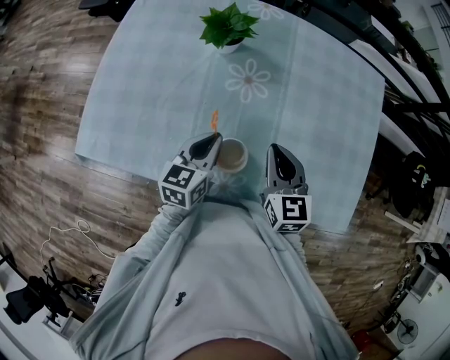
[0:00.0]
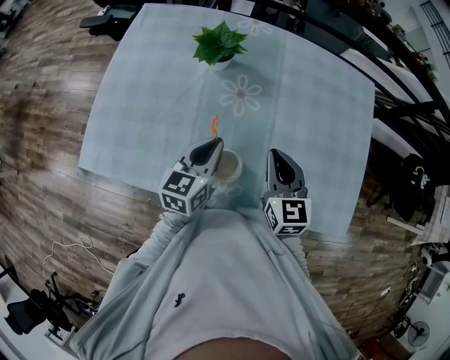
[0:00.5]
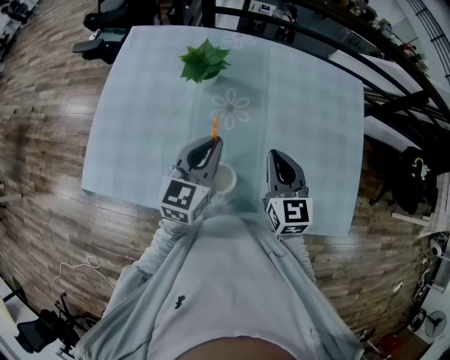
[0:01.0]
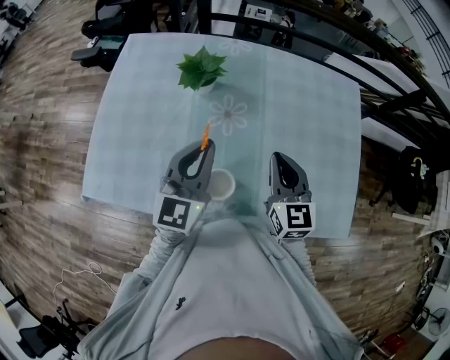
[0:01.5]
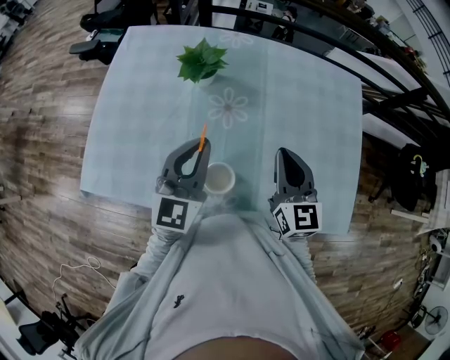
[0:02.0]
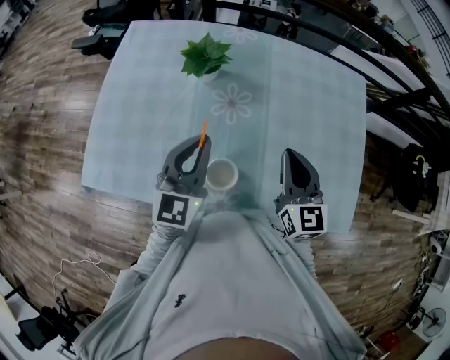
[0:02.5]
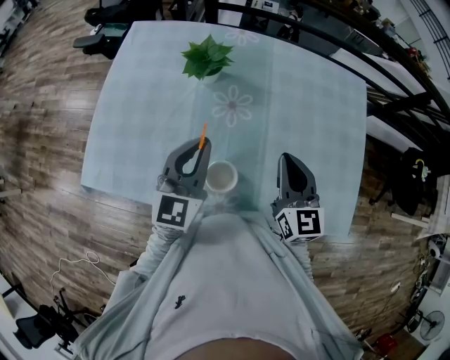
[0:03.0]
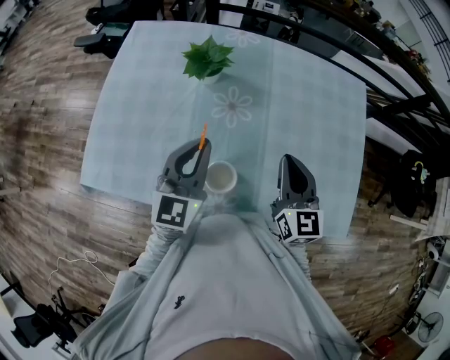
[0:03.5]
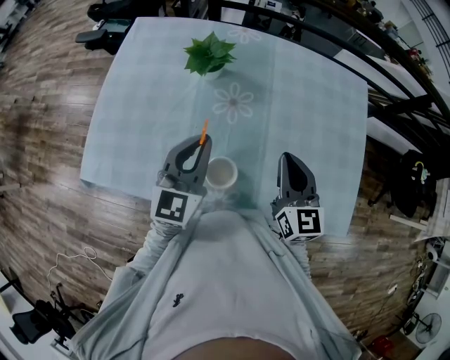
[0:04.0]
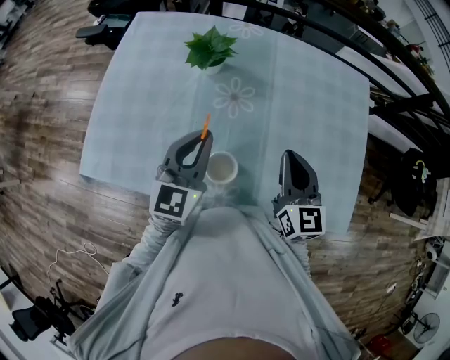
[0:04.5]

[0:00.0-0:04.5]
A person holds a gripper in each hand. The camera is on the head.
0:00.0 to 0:02.0: The left gripper is displaced upward by some 15 cm, and turns by approximately 30 degrees. Meanwhile the right gripper heads upward, covering some 10 cm.
0:02.0 to 0:04.5: There are only small adjustments of the grippers.

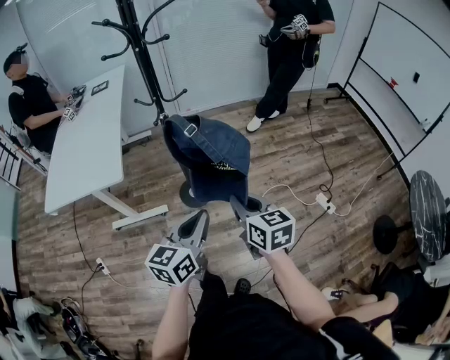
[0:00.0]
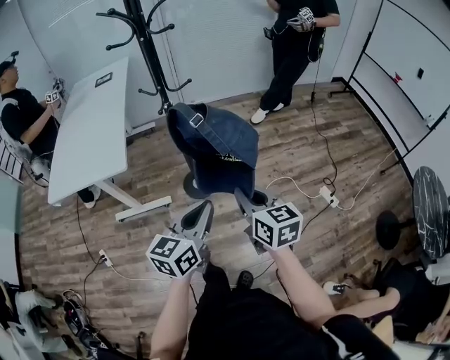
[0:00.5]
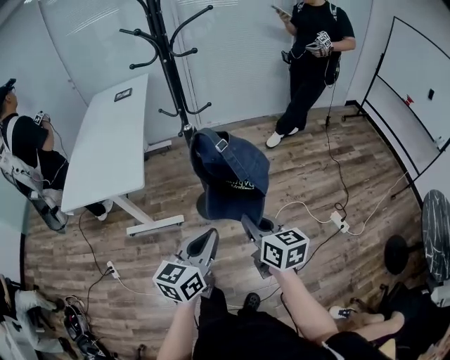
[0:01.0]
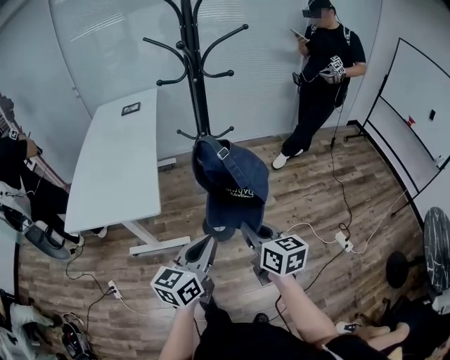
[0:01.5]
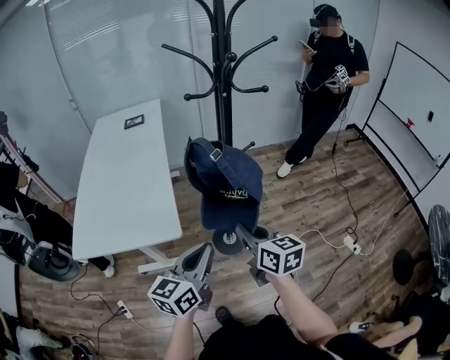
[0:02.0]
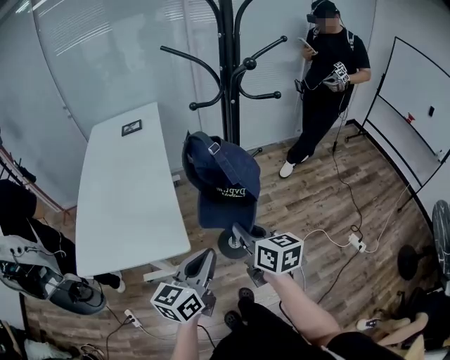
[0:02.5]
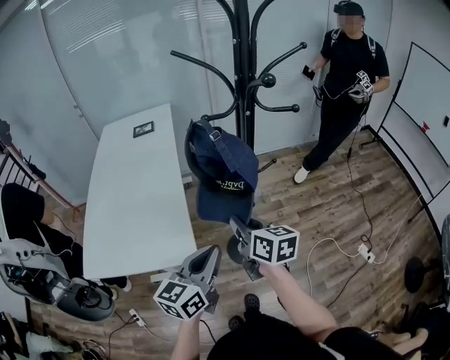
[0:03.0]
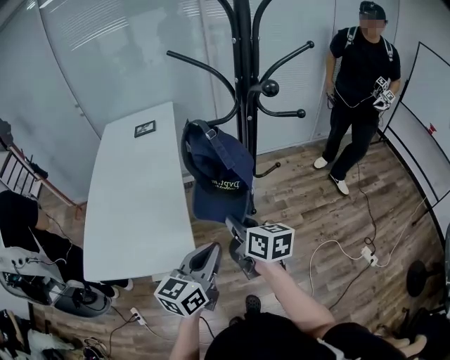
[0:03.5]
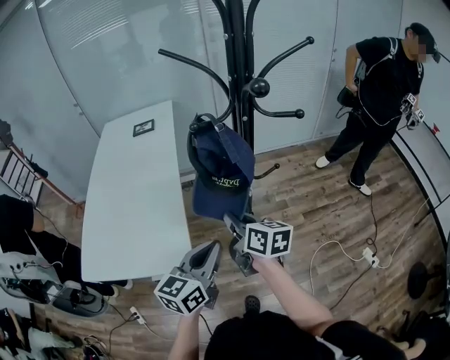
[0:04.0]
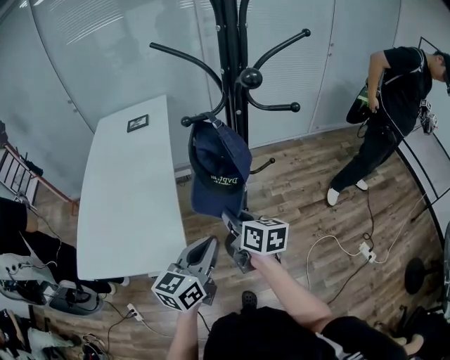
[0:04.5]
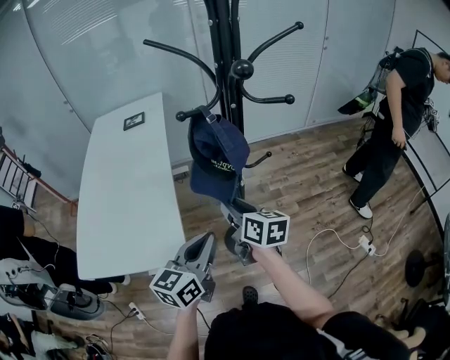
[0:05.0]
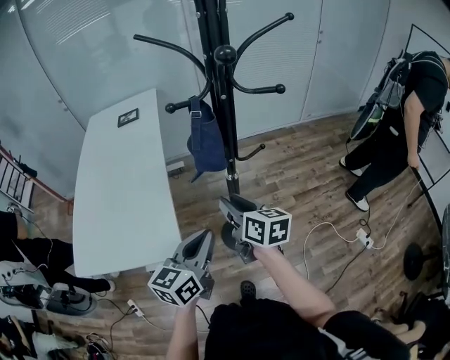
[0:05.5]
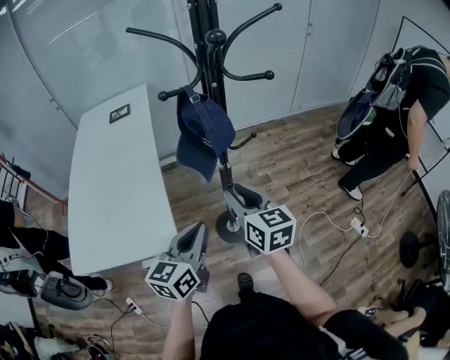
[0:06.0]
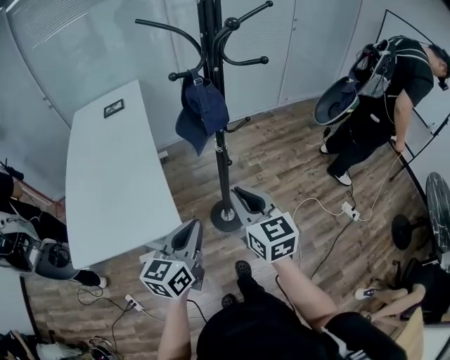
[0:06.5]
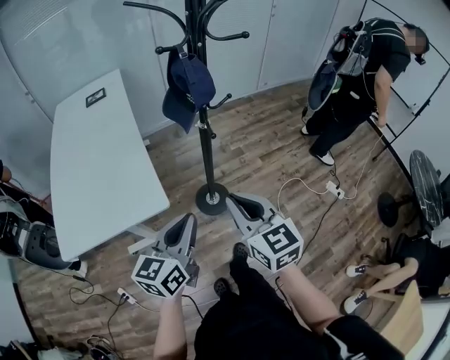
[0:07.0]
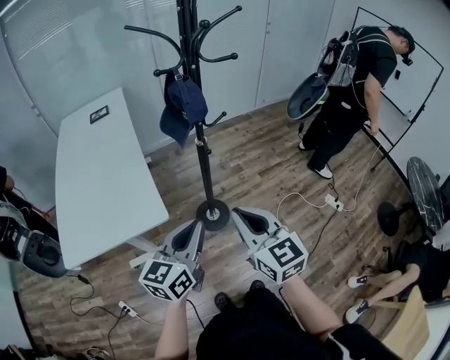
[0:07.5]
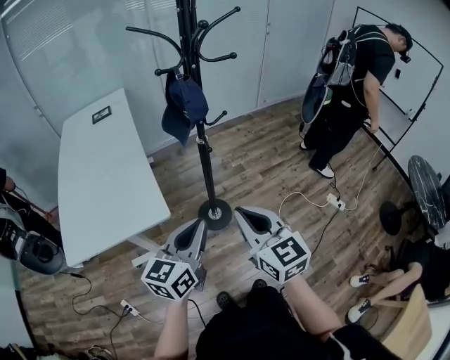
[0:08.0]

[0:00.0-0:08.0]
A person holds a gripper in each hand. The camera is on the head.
0:00.0 to 0:02.0: The two grippers go approximately 25 cm to the left and forward.
0:02.0 to 0:04.0: The two grippers go some 15 cm forward.
0:04.0 to 0:06.0: The right gripper is displaced to the right by roughly 5 cm, changes its angle by approximately 20 degrees, and opens.
0:06.0 to 0:08.0: The right gripper goes some 25 cm backward, and closes up. Meanwhile the left gripper travels backward by approximately 15 cm.

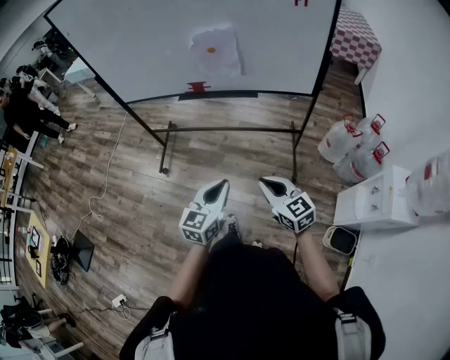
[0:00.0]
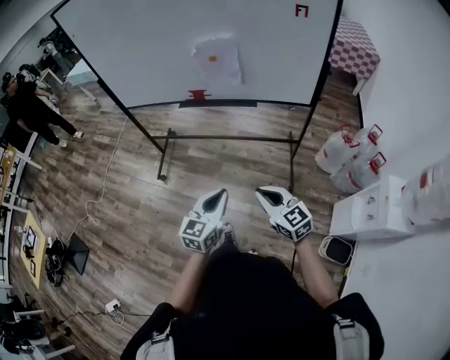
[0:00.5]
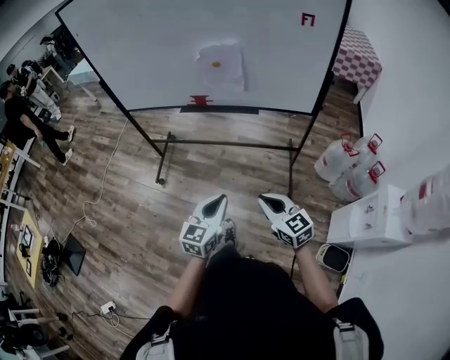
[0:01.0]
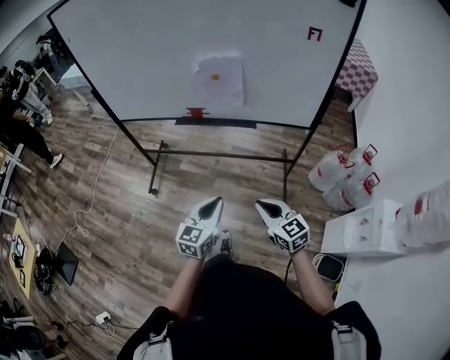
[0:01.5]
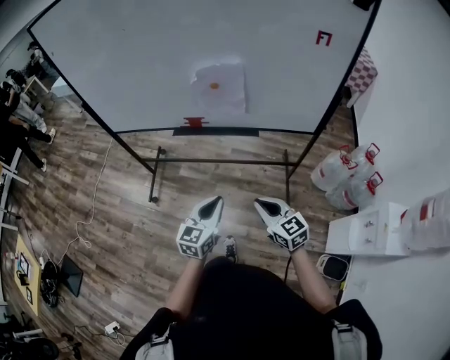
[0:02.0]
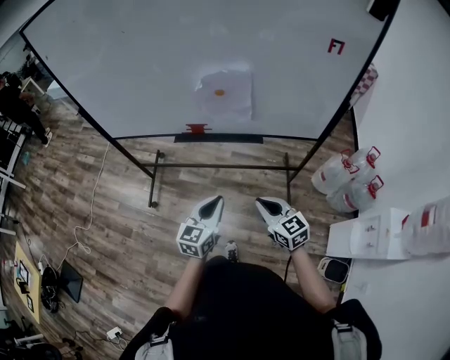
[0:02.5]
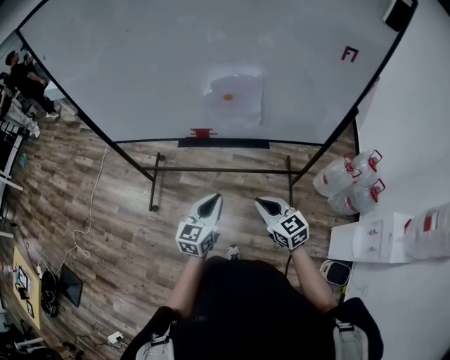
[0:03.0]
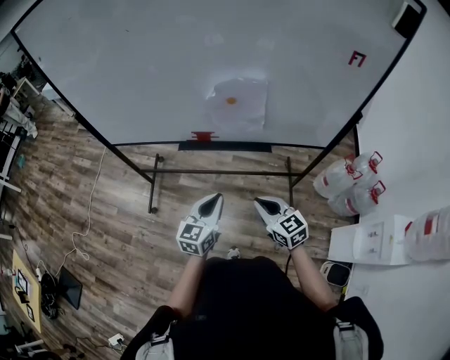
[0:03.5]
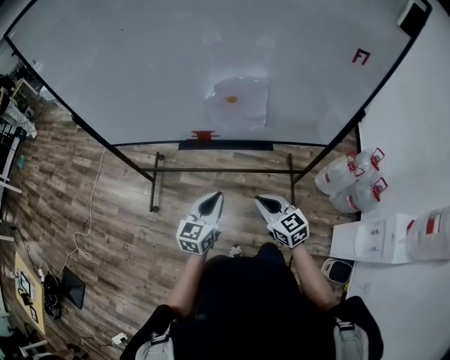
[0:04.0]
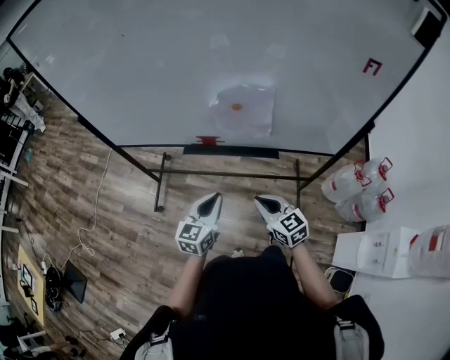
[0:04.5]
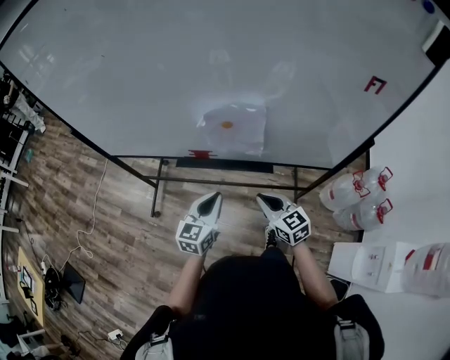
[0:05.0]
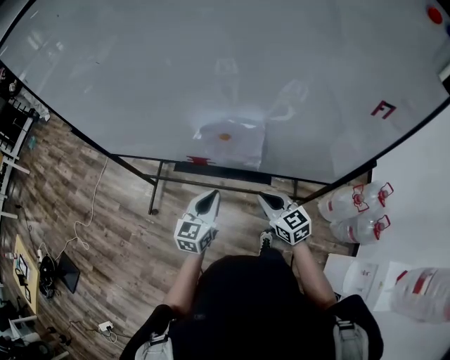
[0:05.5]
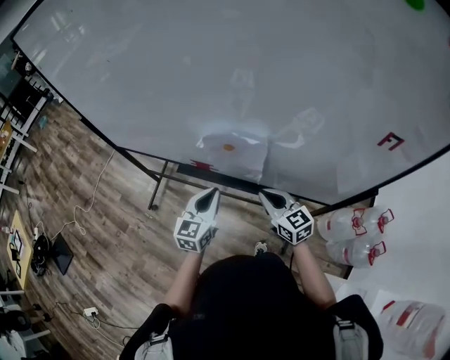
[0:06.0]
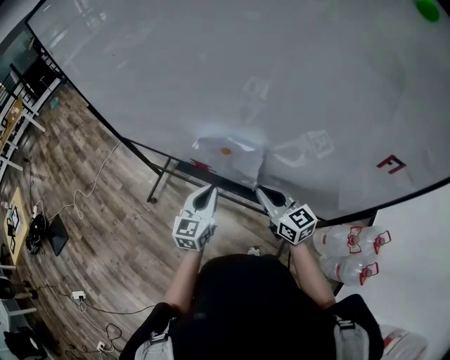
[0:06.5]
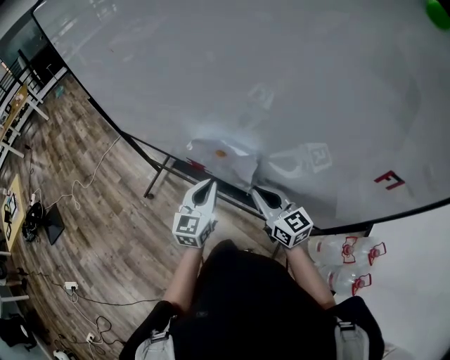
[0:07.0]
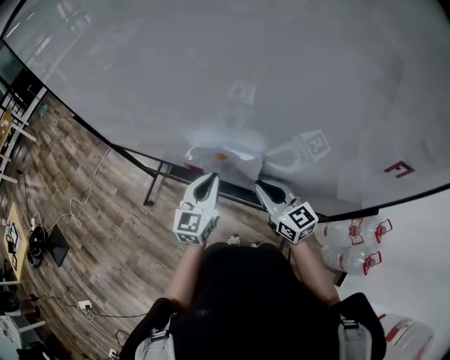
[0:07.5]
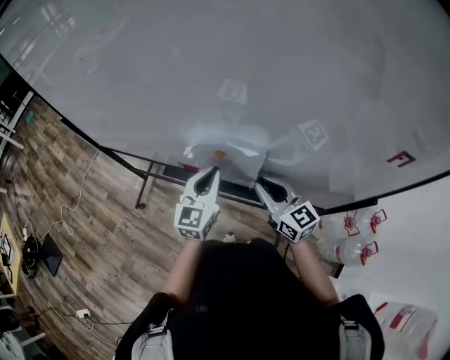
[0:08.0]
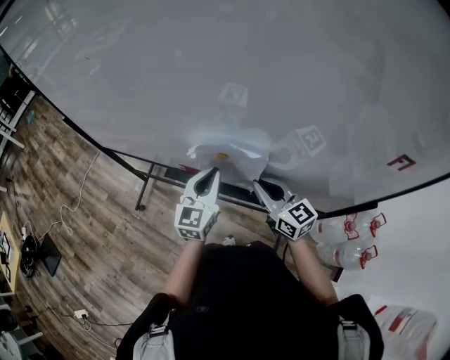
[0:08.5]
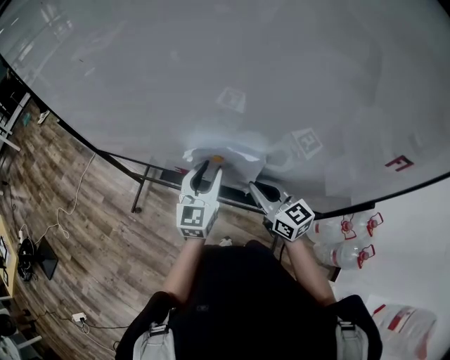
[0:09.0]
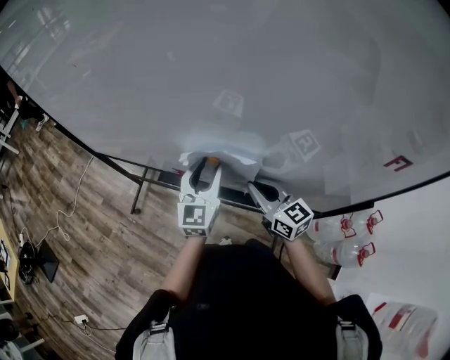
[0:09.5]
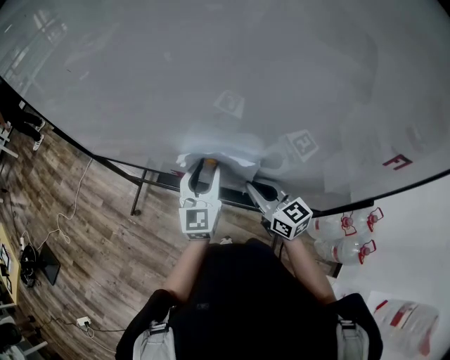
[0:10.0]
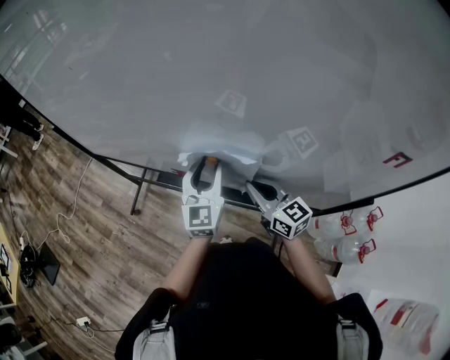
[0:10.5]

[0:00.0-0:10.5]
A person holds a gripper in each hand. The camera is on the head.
0:00.0 to 0:02.0: Both grippers move forward, approximately 15 cm.
0:02.0 to 0:04.0: Both grippers move forward and to the left, about 15 cm.
0:04.0 to 0:06.5: The two grippers go some 25 cm forward and to the right. The left gripper swivels approximately 30 degrees, while the right gripper changes its angle by roughly 20 degrees.
0:06.5 to 0:08.5: The left gripper is displaced forward by roughly 5 cm.
0:08.5 to 0:10.5: The left gripper opens its fingers.

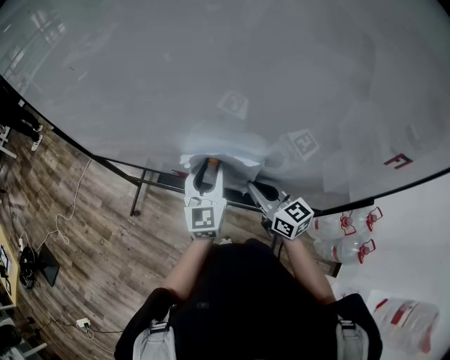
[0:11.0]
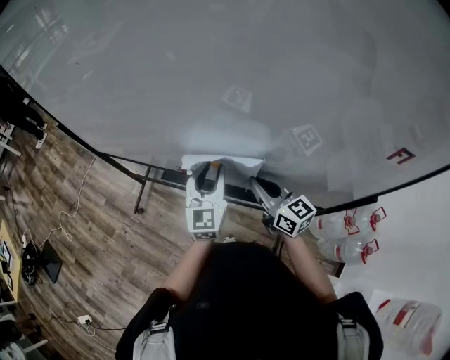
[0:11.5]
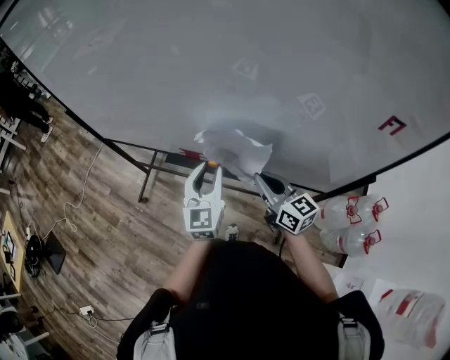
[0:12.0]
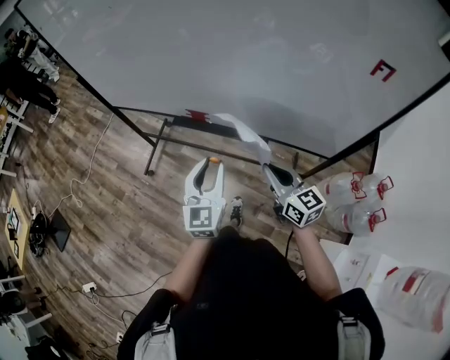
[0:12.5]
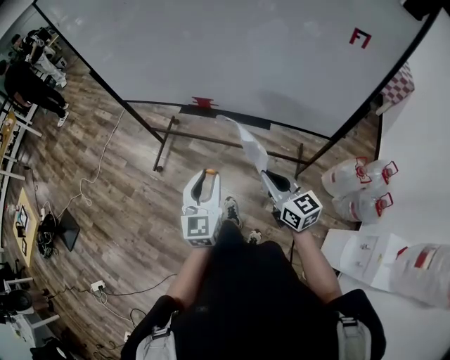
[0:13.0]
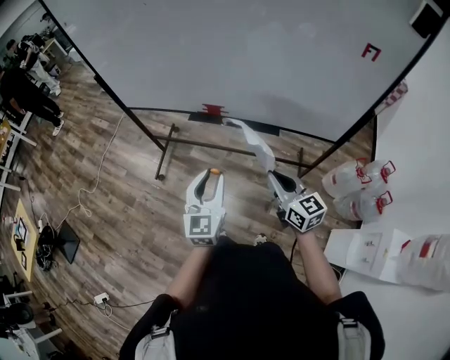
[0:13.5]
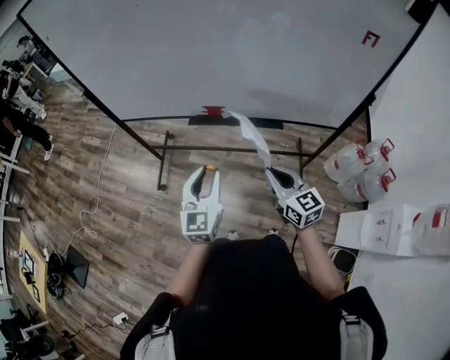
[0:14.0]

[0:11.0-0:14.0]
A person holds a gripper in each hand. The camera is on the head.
0:11.0 to 0:12.5: The two grippers go some 20 cm backward.
0:12.5 to 0:14.0: The left gripper goes roughly 15 cm to the left, while the right gripper travels to the left and backward by approximately 15 cm.
